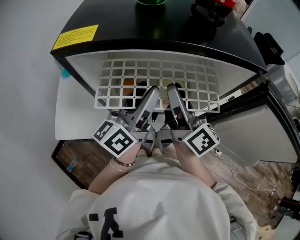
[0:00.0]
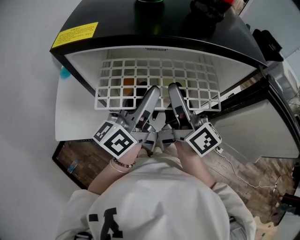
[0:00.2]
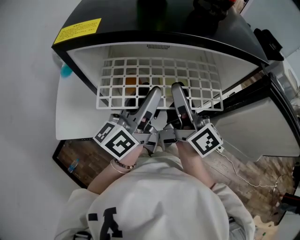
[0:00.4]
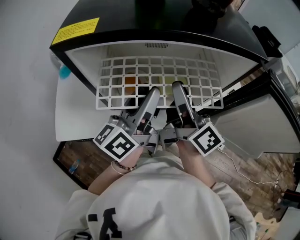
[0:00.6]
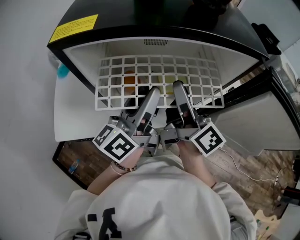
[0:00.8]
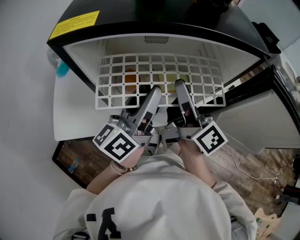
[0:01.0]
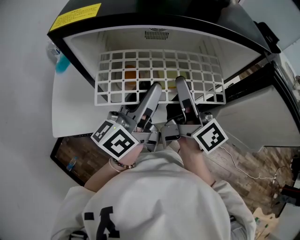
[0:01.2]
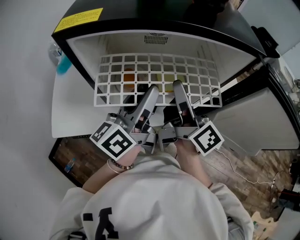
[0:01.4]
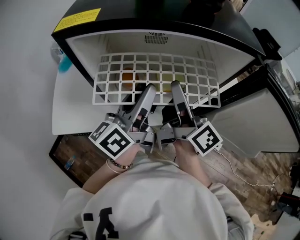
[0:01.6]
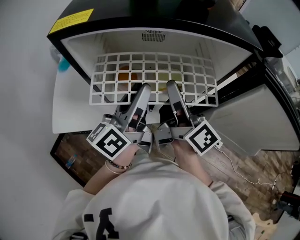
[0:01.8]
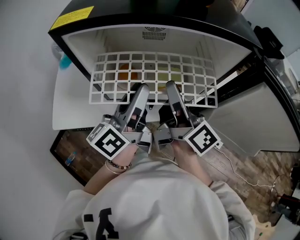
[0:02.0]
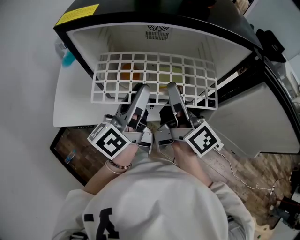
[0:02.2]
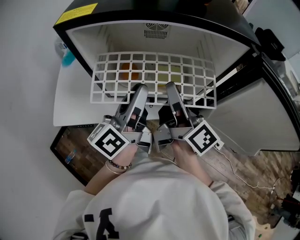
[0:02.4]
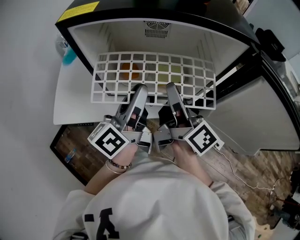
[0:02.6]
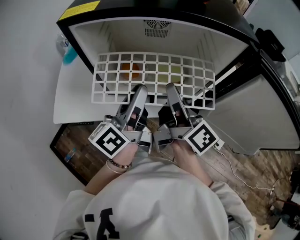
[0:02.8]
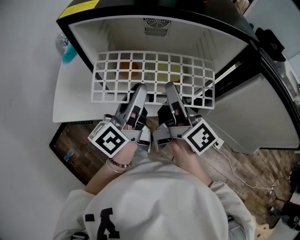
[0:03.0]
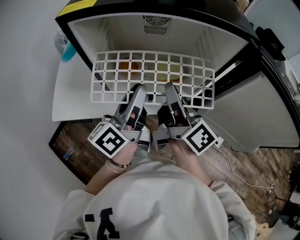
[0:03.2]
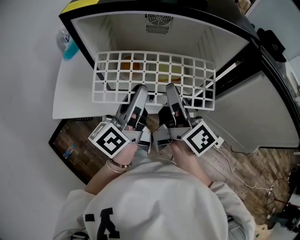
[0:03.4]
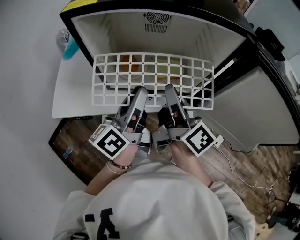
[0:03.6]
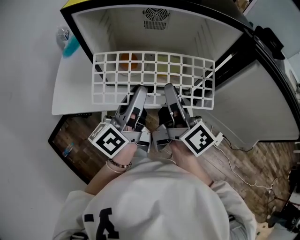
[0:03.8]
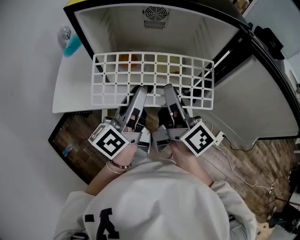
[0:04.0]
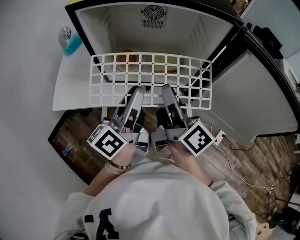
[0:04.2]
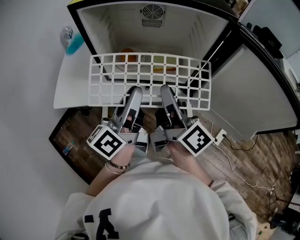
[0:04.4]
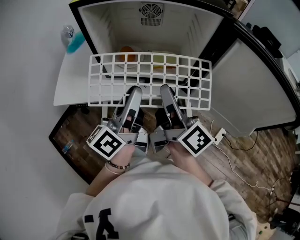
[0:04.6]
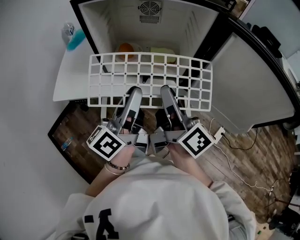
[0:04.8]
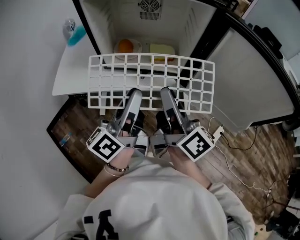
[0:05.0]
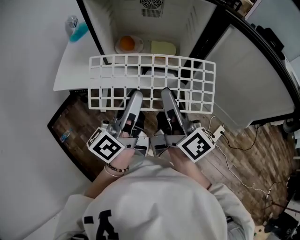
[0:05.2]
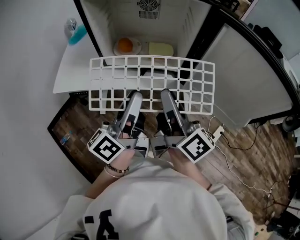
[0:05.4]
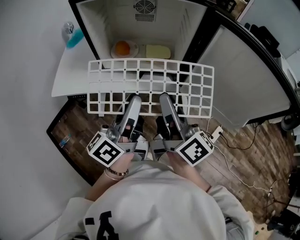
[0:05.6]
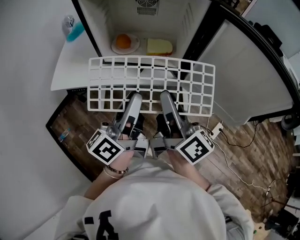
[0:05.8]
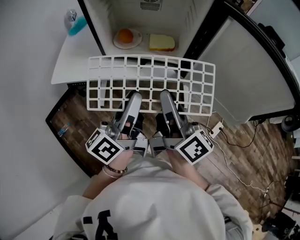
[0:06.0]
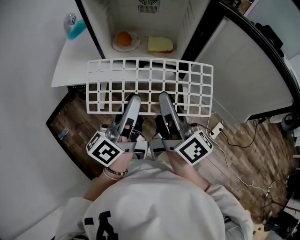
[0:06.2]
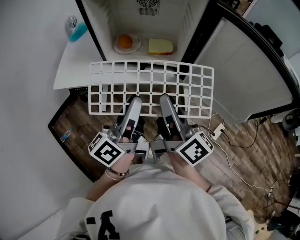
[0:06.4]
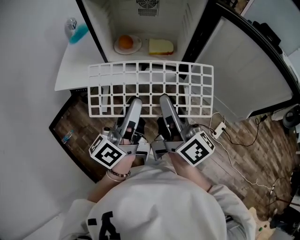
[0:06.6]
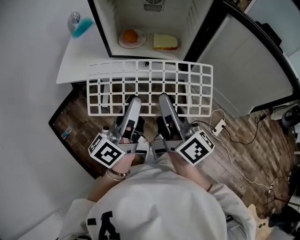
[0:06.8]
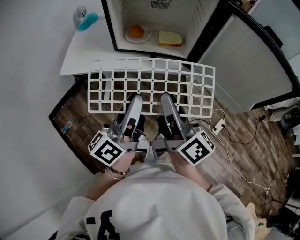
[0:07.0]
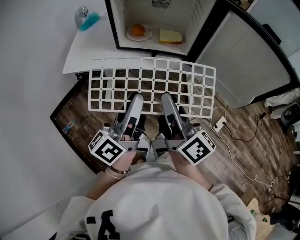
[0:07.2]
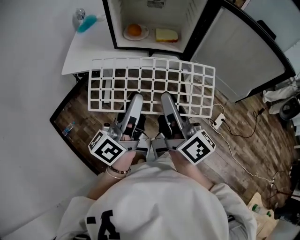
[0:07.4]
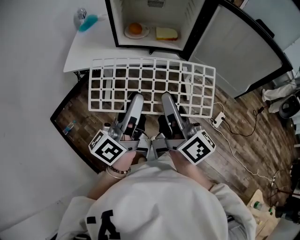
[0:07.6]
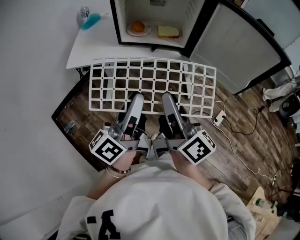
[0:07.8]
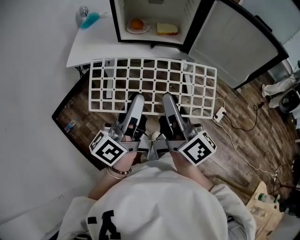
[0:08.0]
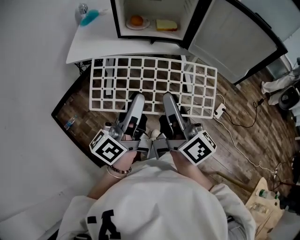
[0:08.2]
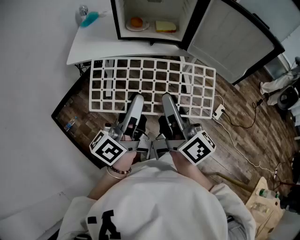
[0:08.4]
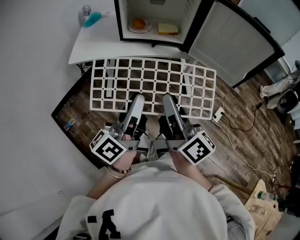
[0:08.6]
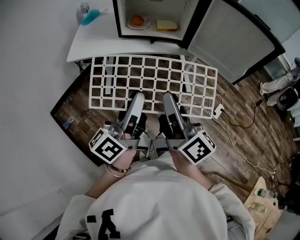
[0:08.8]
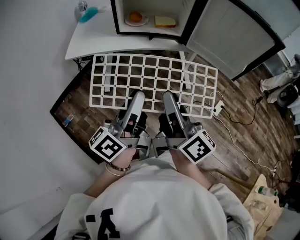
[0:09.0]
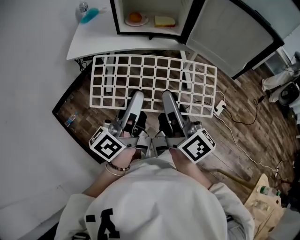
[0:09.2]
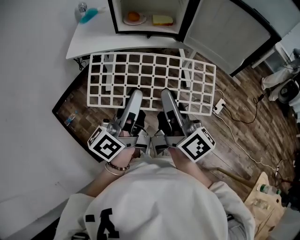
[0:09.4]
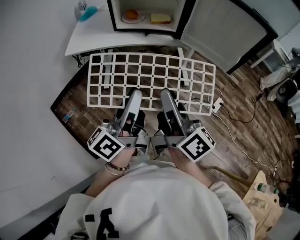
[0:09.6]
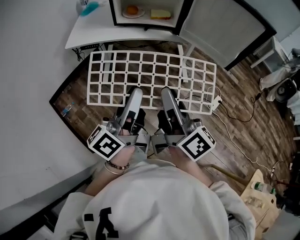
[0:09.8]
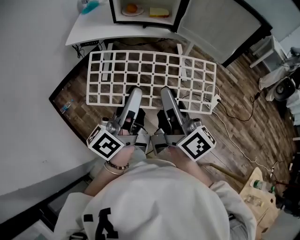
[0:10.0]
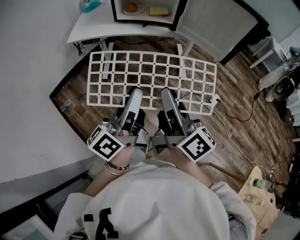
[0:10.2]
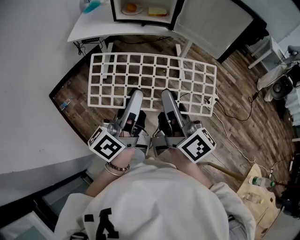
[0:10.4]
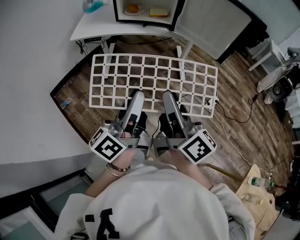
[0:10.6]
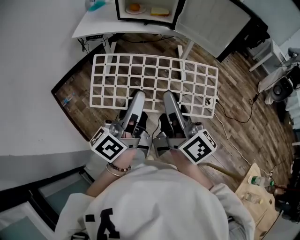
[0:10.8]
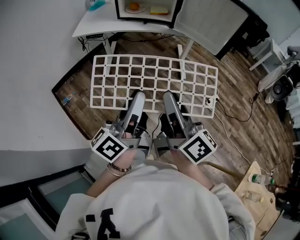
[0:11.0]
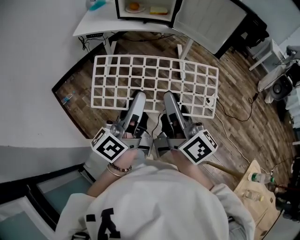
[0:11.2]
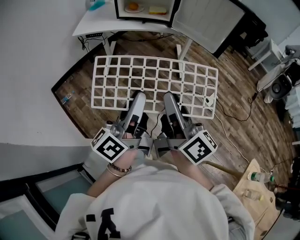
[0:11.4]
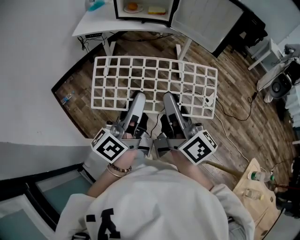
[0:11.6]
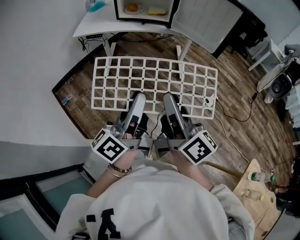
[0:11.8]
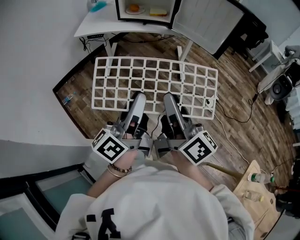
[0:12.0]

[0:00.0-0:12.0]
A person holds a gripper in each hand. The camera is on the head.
0:00.0 to 0:01.6: The left gripper travels backward by some 5 cm.
0:01.6 to 0:03.0: The grippers stay close to where they were, moving slightly.
0:03.0 to 0:04.4: The grippers both shift backward by approximately 10 cm.
0:04.4 to 0:06.0: Both grippers travel together backward, roughly 10 cm.
0:06.0 to 0:07.6: The right gripper goes some 15 cm backward, while the left gripper shifts roughly 15 cm backward and to the left.
0:07.6 to 0:09.0: Both grippers move backward, roughly 10 cm.
0:09.0 to 0:10.4: The grippers both shift backward and to the right by approximately 15 cm.
0:10.4 to 0:12.0: The two grippers go about 10 cm backward.

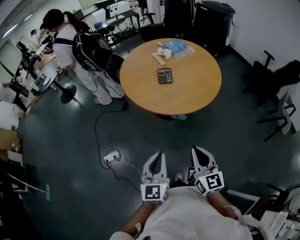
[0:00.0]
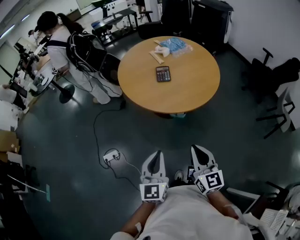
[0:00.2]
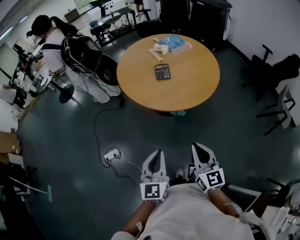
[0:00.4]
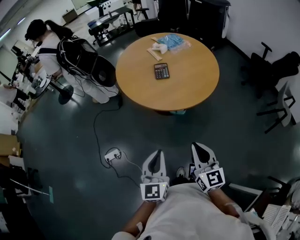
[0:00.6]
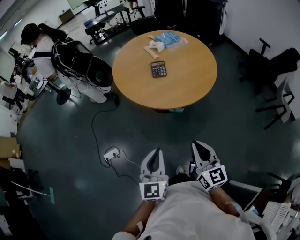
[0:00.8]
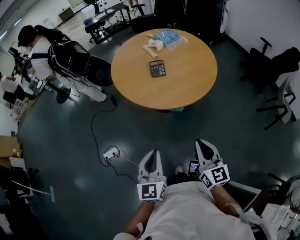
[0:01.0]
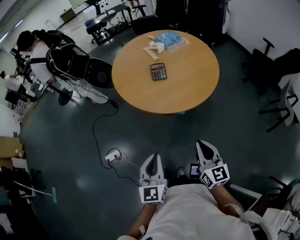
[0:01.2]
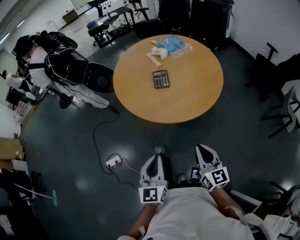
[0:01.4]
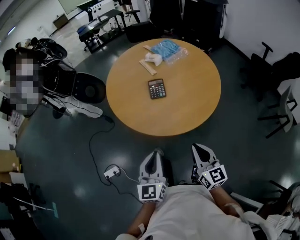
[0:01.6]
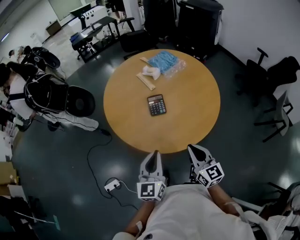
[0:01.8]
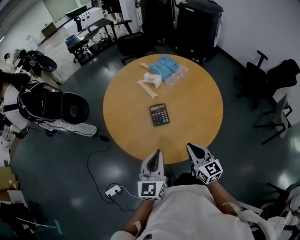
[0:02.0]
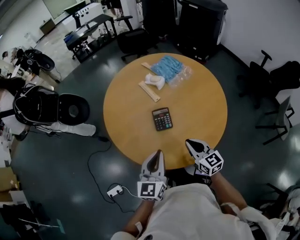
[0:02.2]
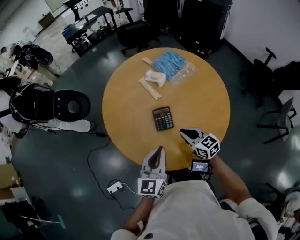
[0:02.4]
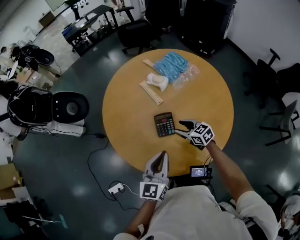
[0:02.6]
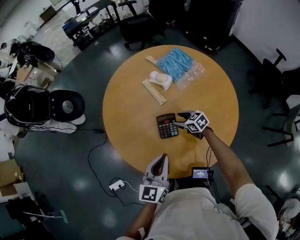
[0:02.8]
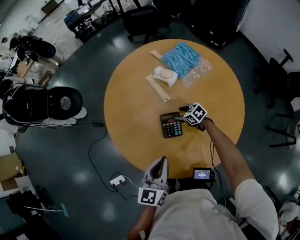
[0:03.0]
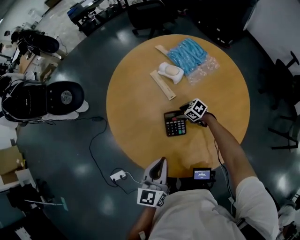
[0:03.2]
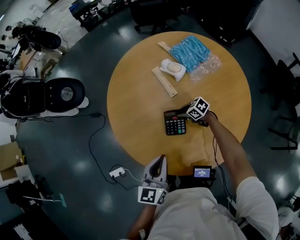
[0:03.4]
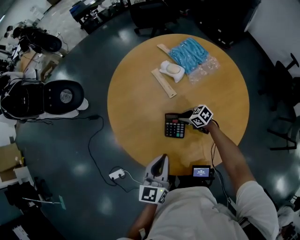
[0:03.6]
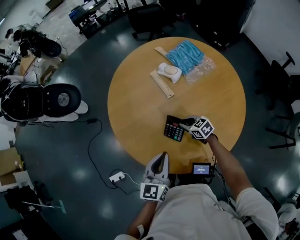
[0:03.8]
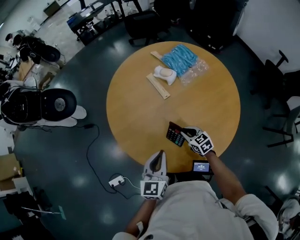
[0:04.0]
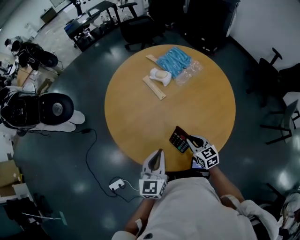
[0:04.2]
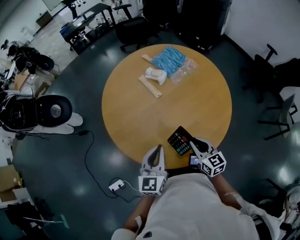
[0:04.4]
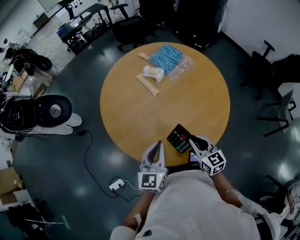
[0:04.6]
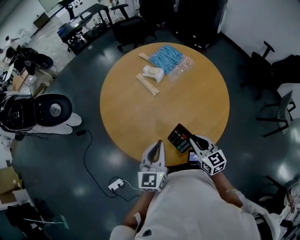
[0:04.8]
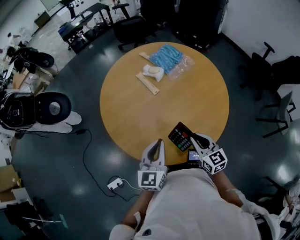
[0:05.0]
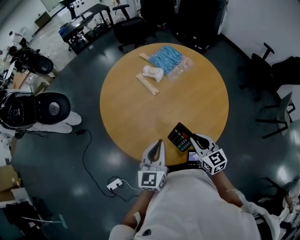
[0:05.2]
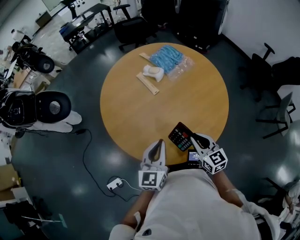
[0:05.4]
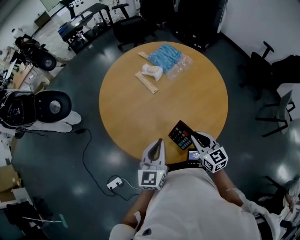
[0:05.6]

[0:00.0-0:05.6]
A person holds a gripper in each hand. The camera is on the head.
0:00.0 to 0:01.4: The right gripper travels forward and to the right by about 10 cm; the left gripper is displaced forward by roughly 10 cm.
0:01.4 to 0:02.8: Both grippers are carried forward, approximately 50 cm. The right gripper goes roughly 25 cm downward, points its fingers some 30 degrees further downward, and opens.
0:02.8 to 0:04.2: The right gripper changes place by some 20 cm, swivels roughly 30 degrees, and closes up.
0:04.2 to 0:05.6: The right gripper heads upward, covering about 10 cm.

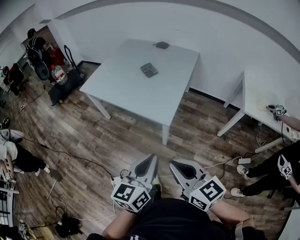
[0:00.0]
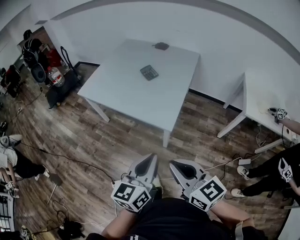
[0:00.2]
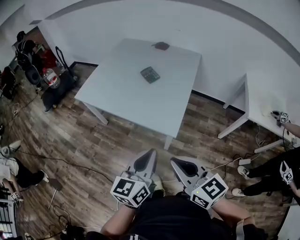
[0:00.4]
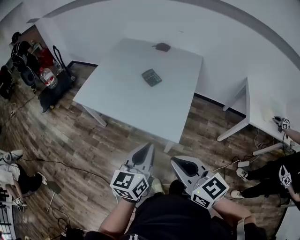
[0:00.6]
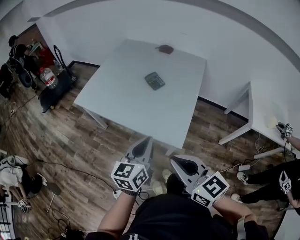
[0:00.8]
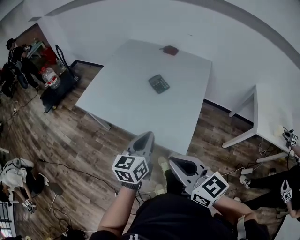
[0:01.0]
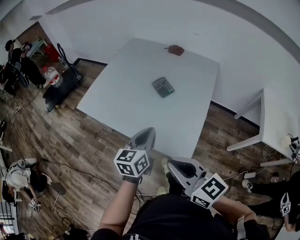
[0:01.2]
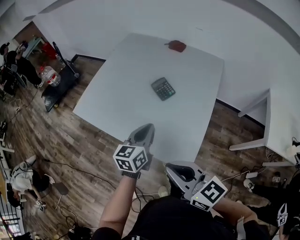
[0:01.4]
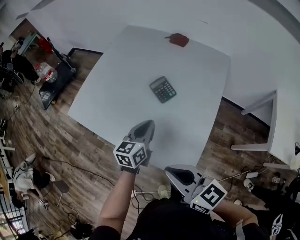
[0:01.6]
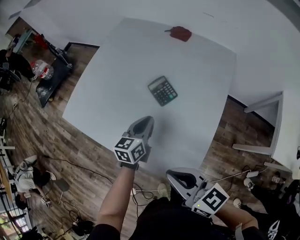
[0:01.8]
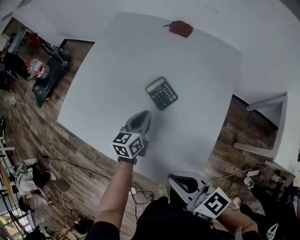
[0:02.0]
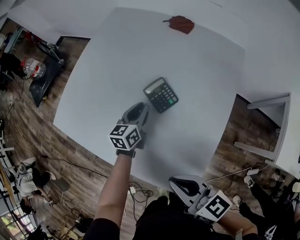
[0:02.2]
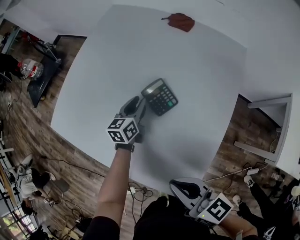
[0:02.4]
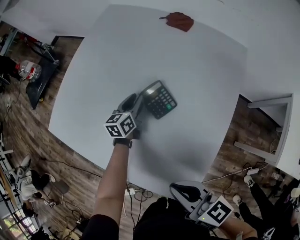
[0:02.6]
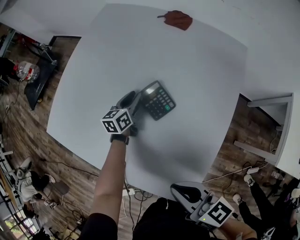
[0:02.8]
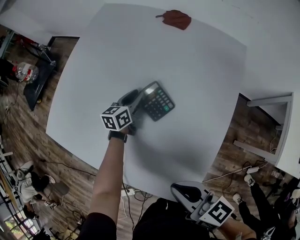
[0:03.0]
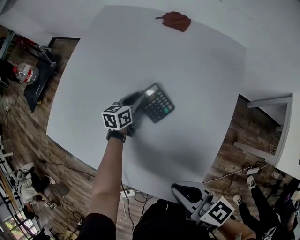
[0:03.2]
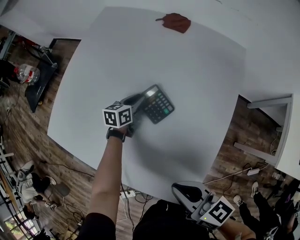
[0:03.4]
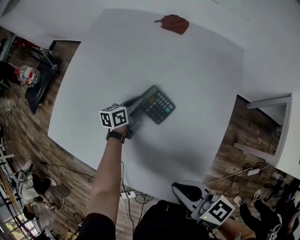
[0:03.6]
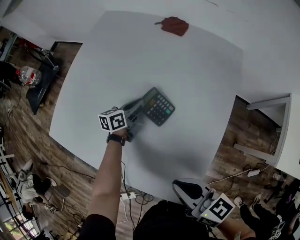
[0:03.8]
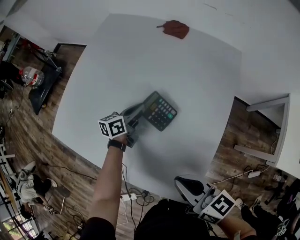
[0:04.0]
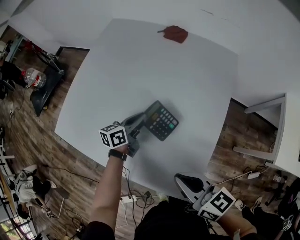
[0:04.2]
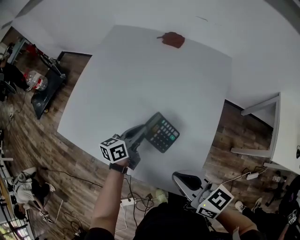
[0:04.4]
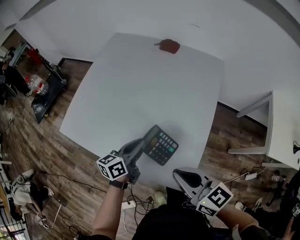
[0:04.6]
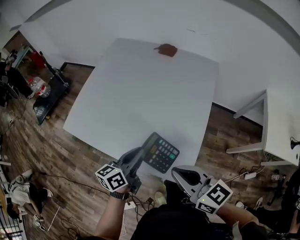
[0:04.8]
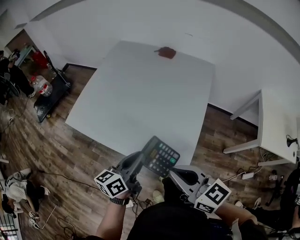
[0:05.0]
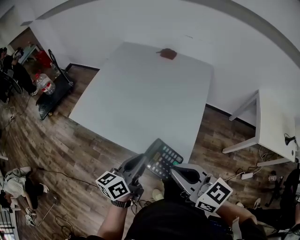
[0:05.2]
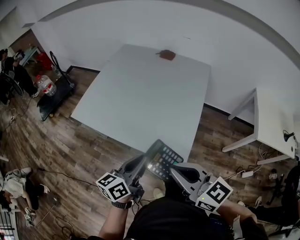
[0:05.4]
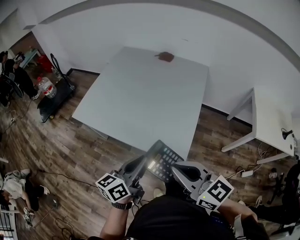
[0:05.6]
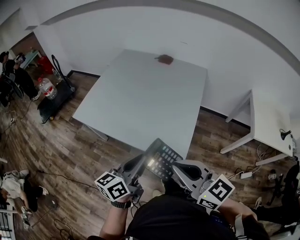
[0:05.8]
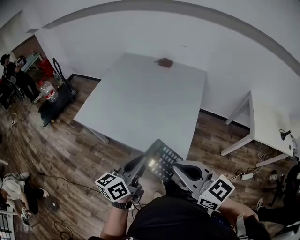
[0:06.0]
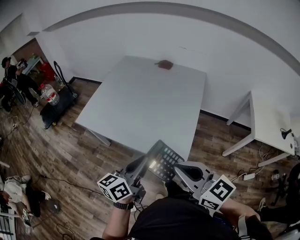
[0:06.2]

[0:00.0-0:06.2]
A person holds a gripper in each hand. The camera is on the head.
0:00.0 to 0:01.6: Both grippers move forward, some 50 cm.
0:01.6 to 0:03.2: The left gripper shifts about 30 cm forward and downward, and opens. Meanwhile the right gripper moves forward, downward and to the right, some 15 cm.
0:03.2 to 0:04.6: The right gripper heads upward and backward, covering about 10 cm. The left gripper heads backward and upward, covering roughly 30 cm, and rotates roughly 20 degrees.
0:04.6 to 0:06.2: Both grippers move backward and upward, approximately 25 cm.
